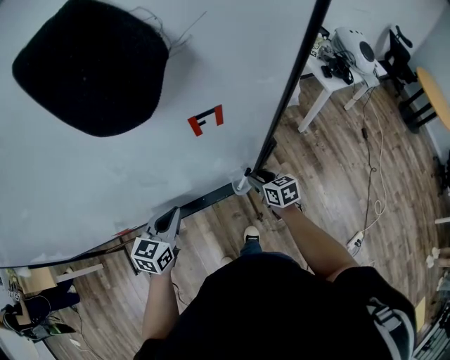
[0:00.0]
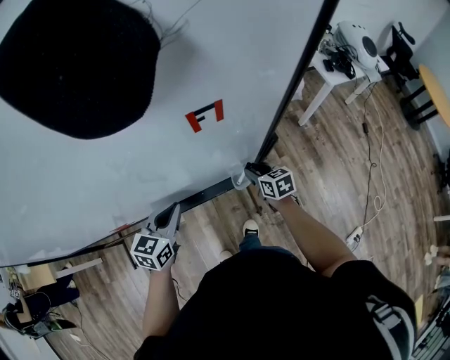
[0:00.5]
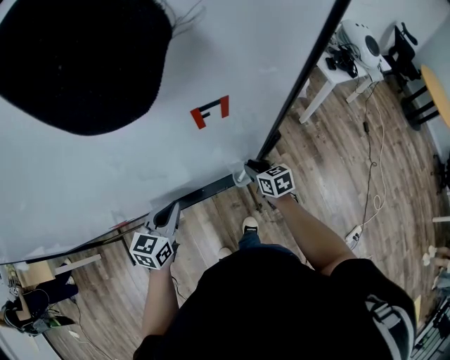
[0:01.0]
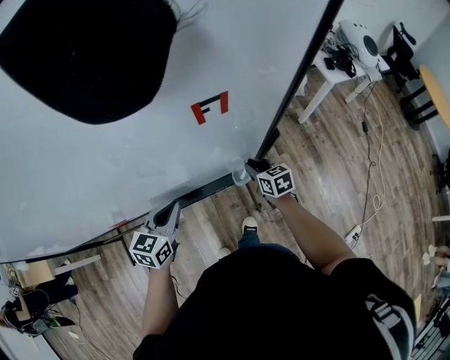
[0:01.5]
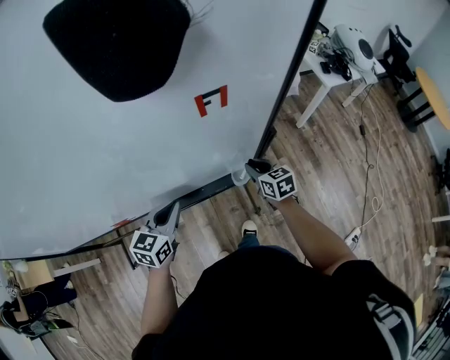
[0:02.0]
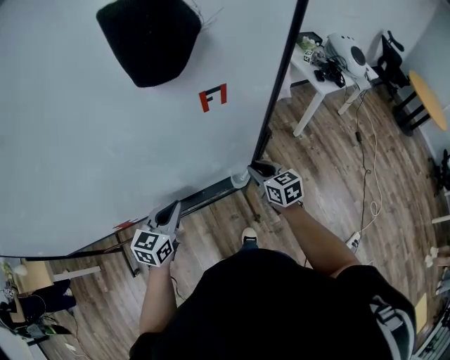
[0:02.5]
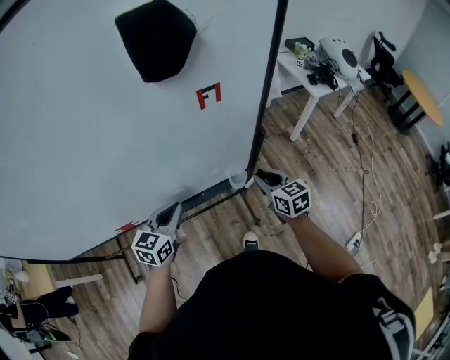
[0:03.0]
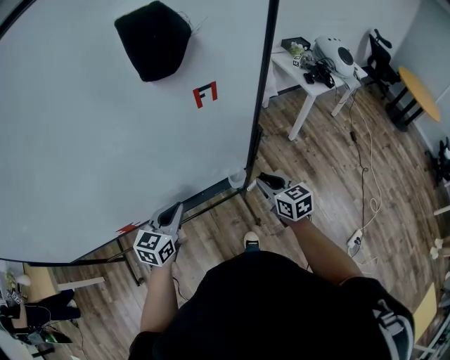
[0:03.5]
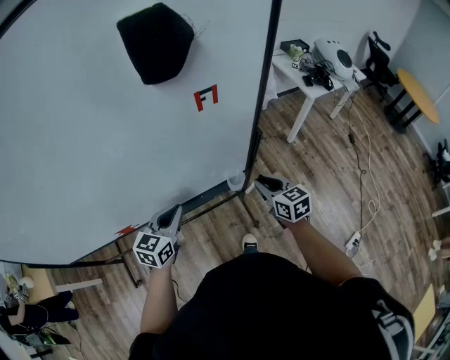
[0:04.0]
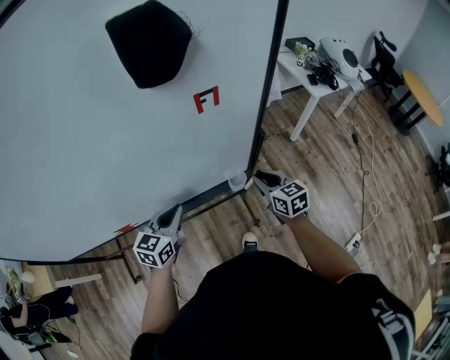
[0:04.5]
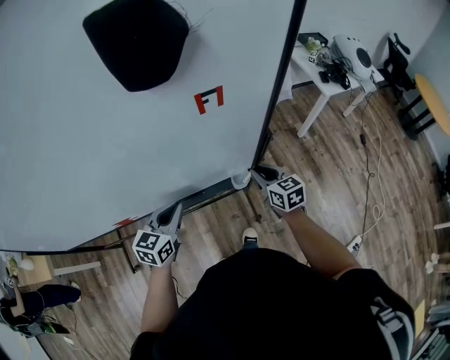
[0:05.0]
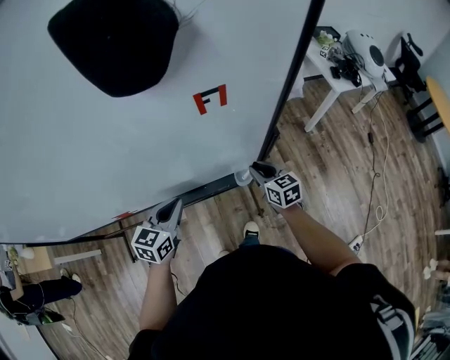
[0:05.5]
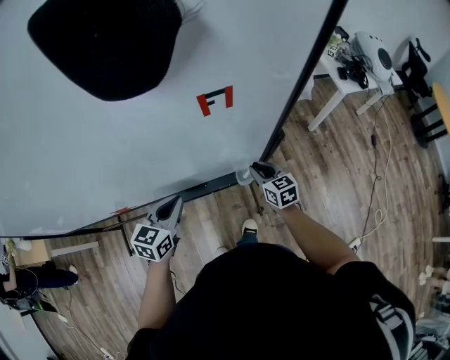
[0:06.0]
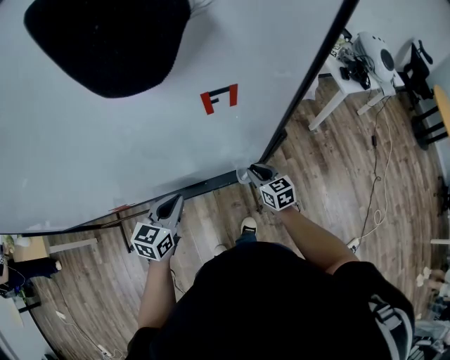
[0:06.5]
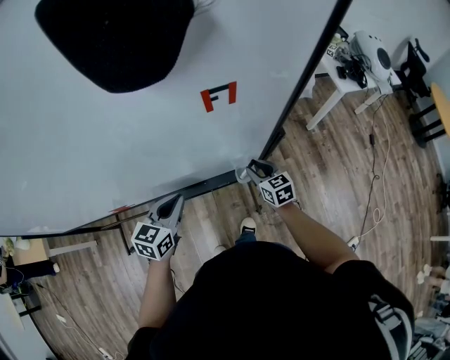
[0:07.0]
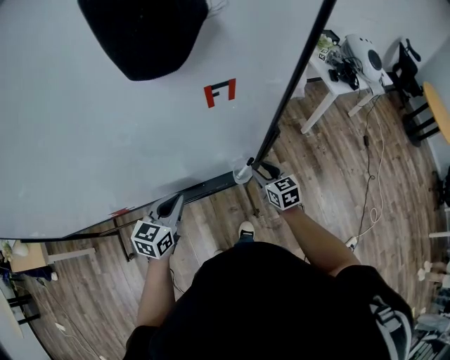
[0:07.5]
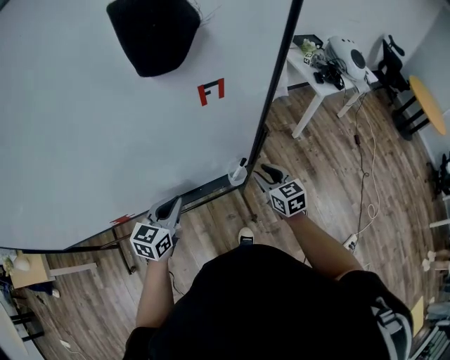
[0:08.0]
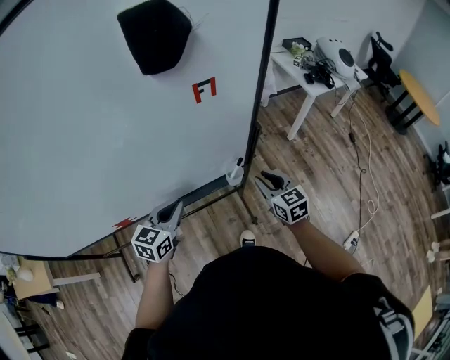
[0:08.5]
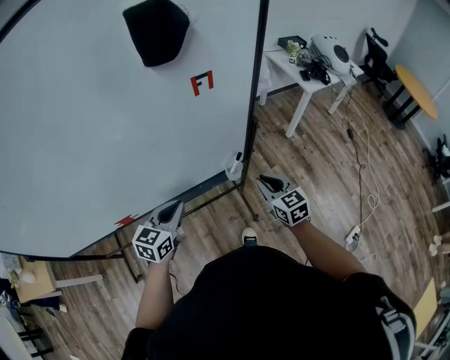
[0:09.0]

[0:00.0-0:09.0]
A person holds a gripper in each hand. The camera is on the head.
0:00.0 to 0:02.0: The grippers move only a little.
0:02.0 to 0:04.5: The right gripper goes approximately 10 cm upward and backward.
0:04.5 to 0:07.0: The right gripper shifts roughly 15 cm downward and forward.
0:07.0 to 0:09.0: The left gripper moves backward, about 5 cm. Meanwhile the right gripper travels backward and upward by about 20 cm.

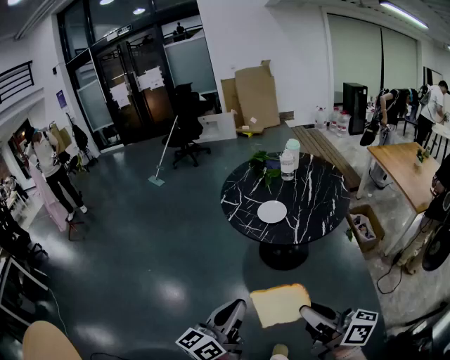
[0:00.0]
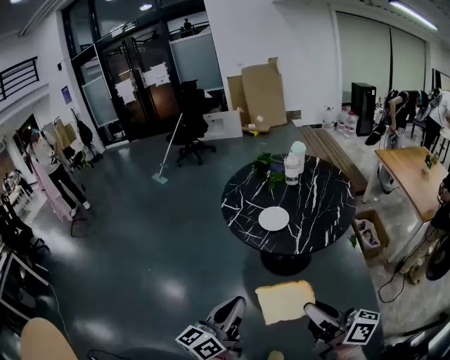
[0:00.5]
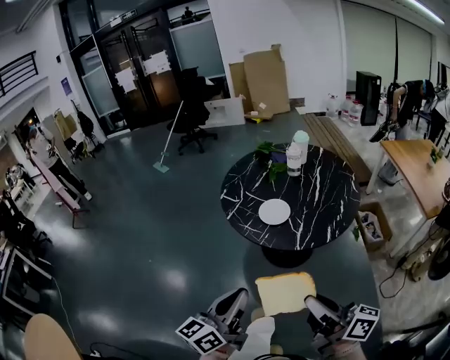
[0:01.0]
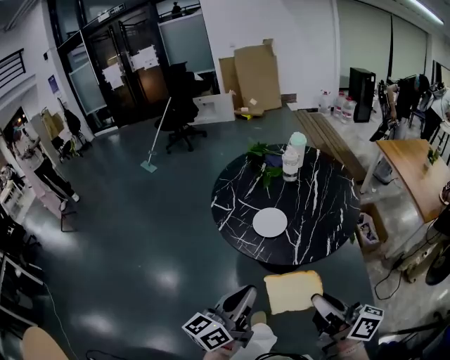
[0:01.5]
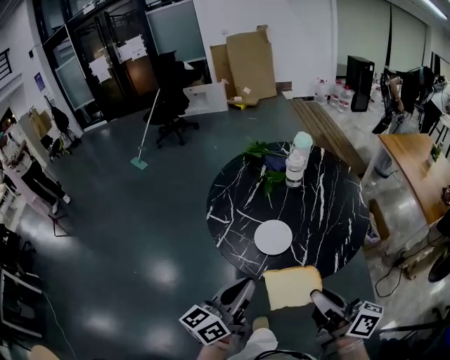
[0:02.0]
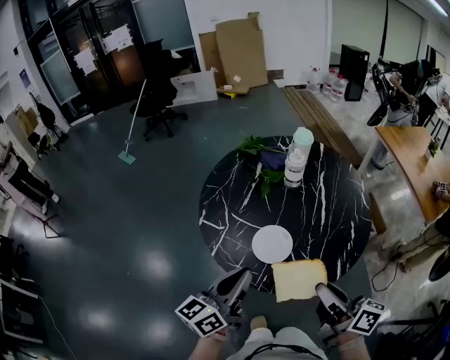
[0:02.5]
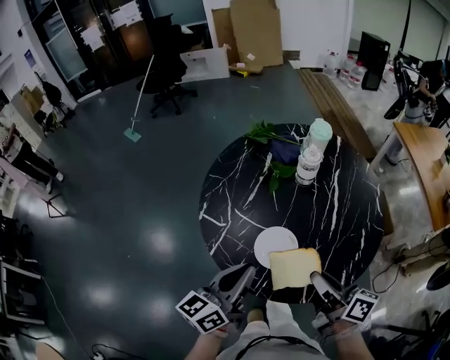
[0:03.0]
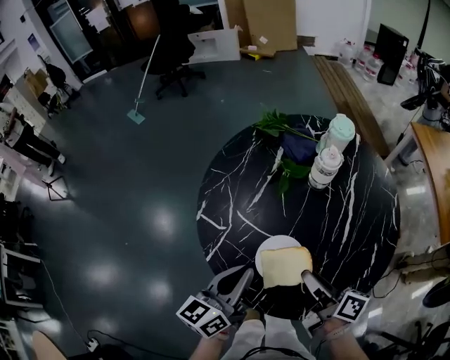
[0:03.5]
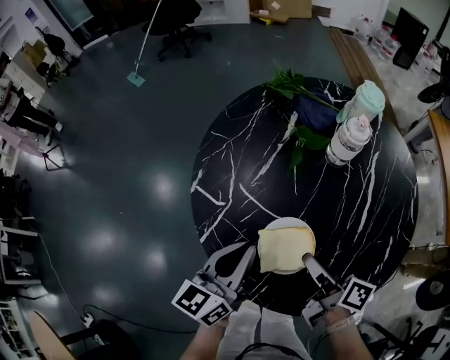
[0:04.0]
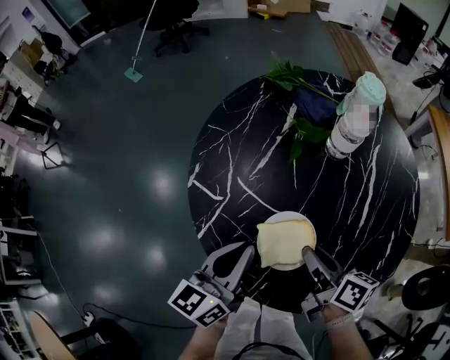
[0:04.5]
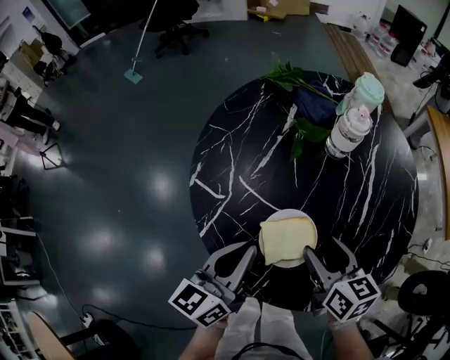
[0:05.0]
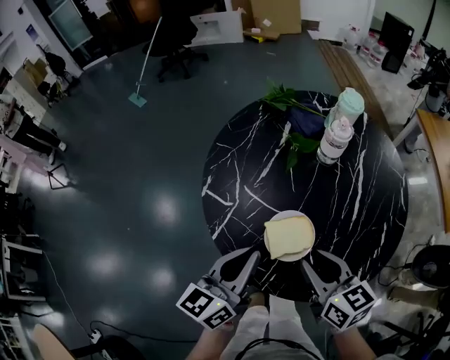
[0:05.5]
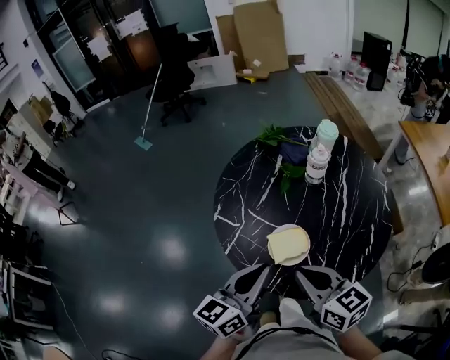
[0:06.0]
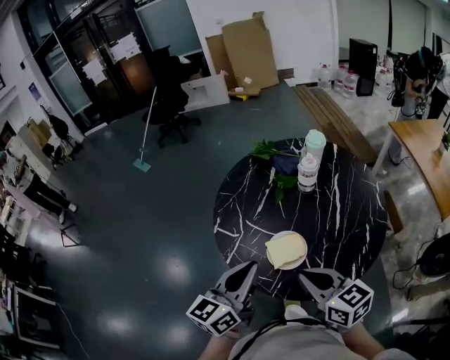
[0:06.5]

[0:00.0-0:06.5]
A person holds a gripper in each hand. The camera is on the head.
0:00.0 to 0:02.0: Both grippers move forward, about 30 cm.
0:02.0 to 0:04.5: The two grippers go some 30 cm forward and downward. The right gripper swivels some 30 degrees.
0:04.5 to 0:06.5: Both grippers move upward and backward, roughly 20 cm. The right gripper changes its angle by some 40 degrees, and opens, then closes once more.

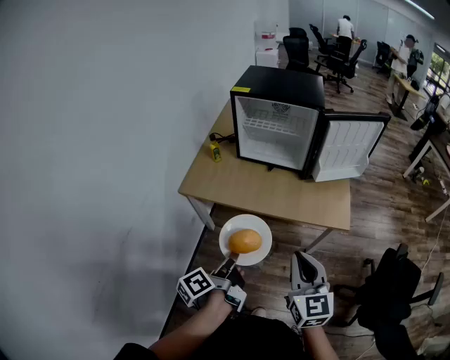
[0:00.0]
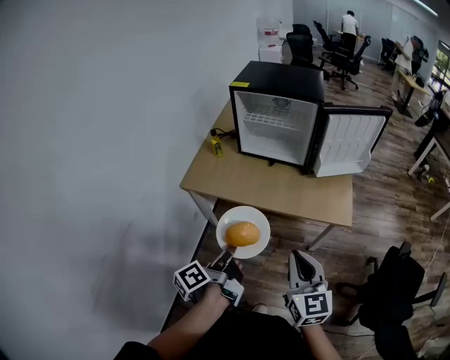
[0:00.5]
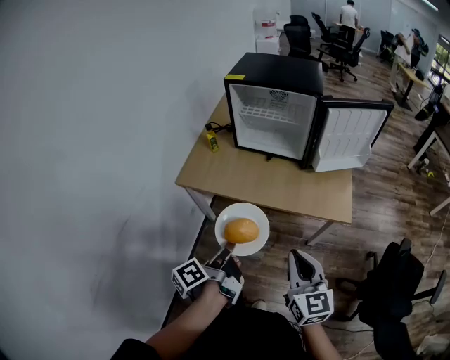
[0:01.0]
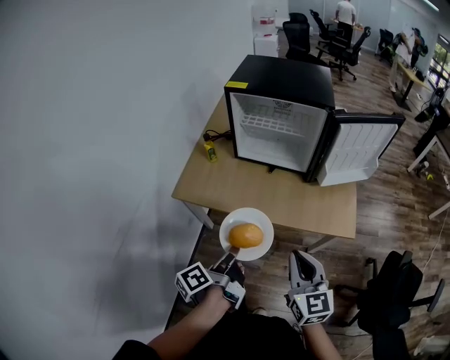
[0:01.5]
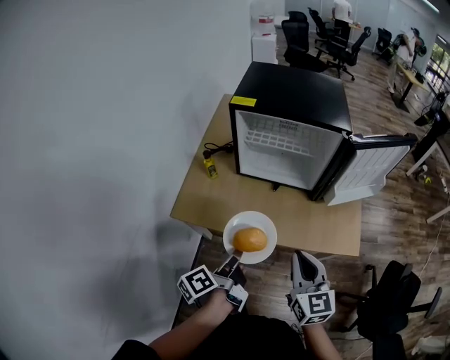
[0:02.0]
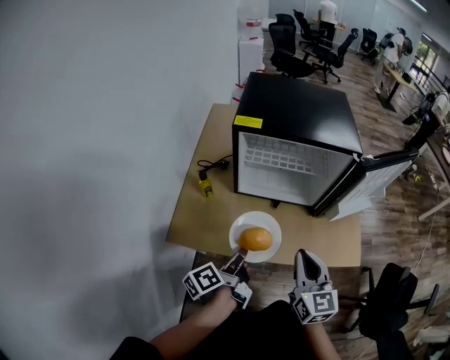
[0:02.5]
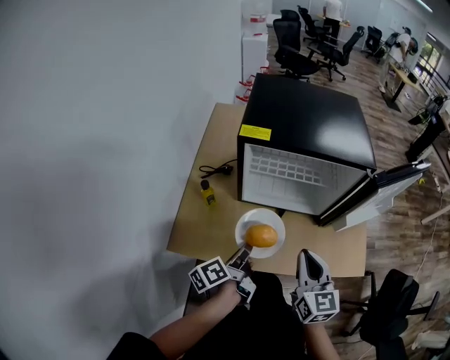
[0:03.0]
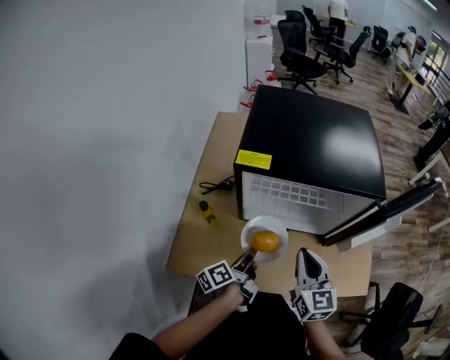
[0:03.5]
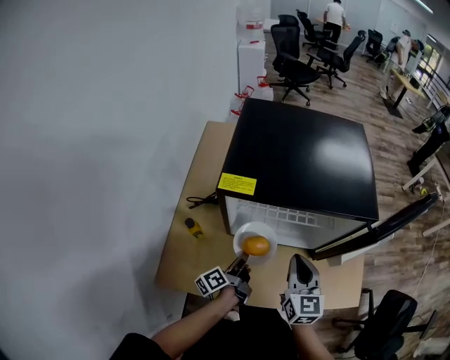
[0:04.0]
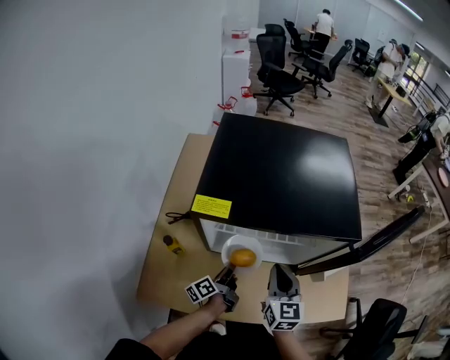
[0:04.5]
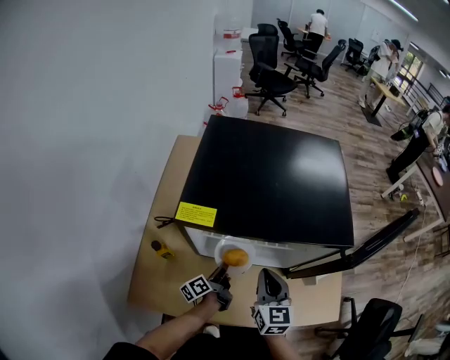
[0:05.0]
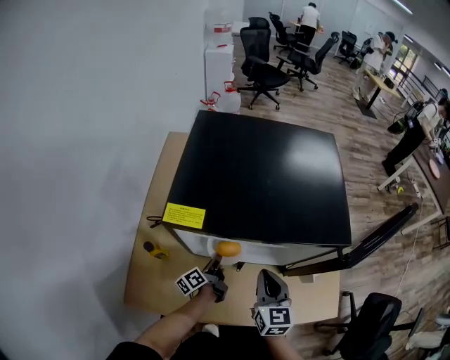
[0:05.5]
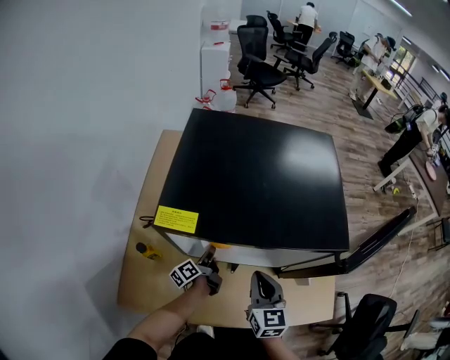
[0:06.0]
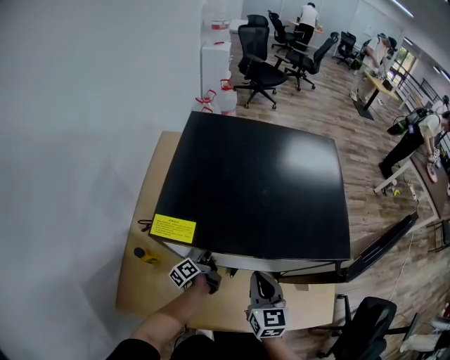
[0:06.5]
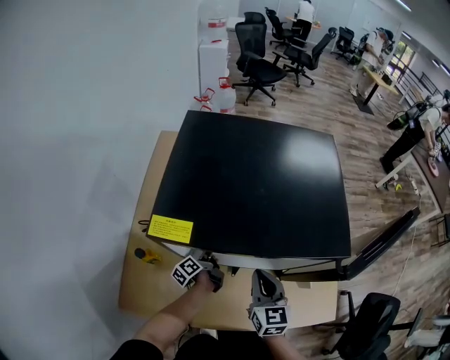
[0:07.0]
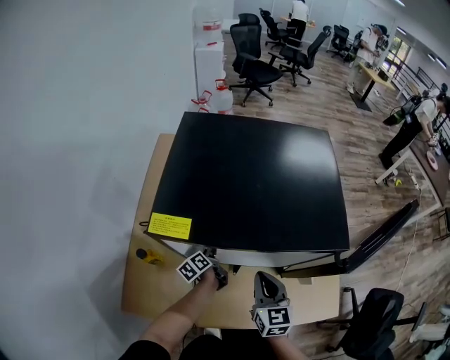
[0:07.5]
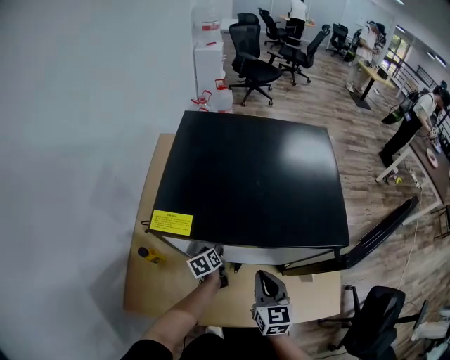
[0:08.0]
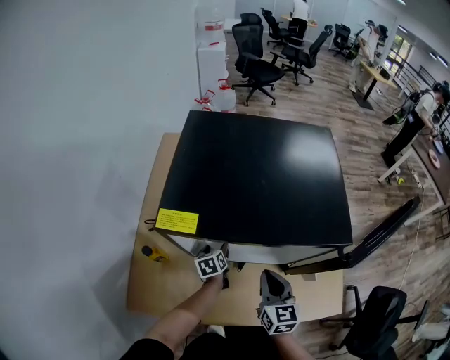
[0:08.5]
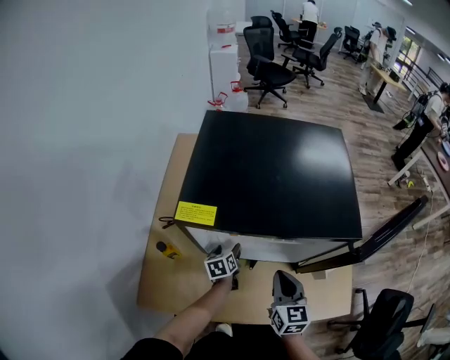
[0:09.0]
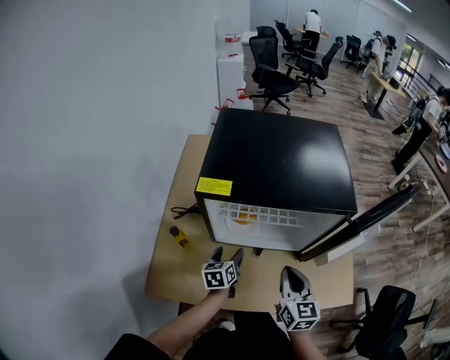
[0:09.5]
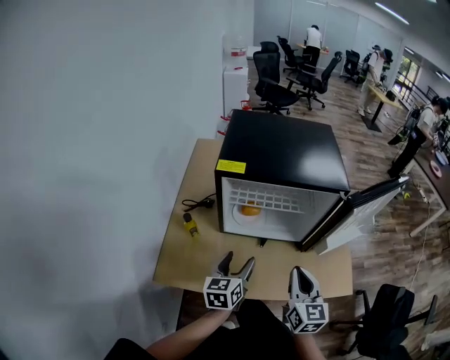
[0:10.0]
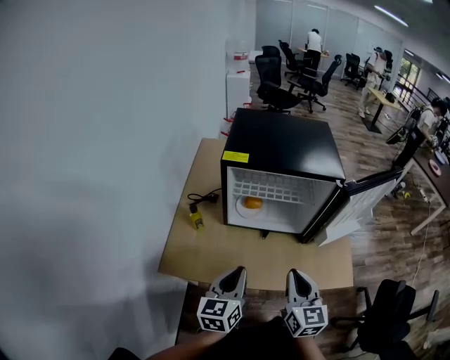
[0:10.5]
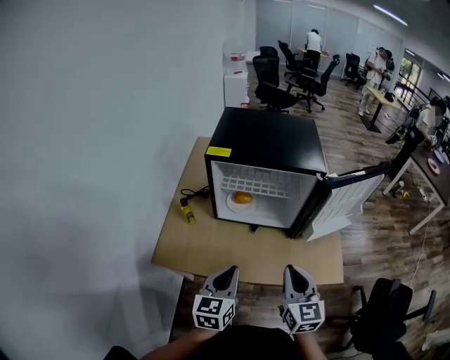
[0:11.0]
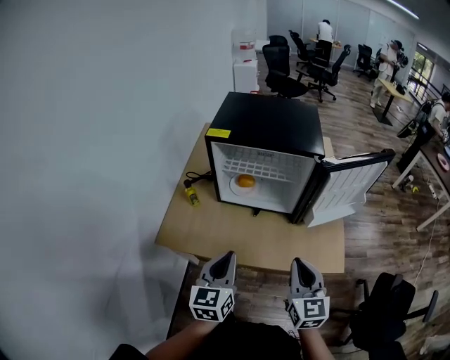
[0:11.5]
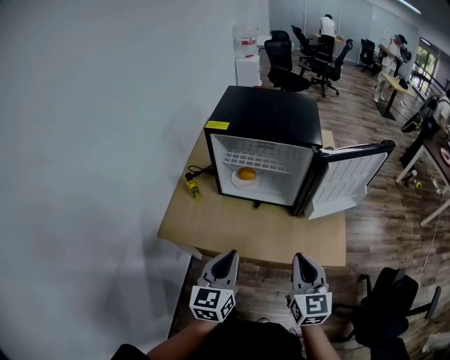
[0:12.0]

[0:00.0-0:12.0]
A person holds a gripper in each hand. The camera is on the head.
0:00.0 to 0:02.0: The two grippers go approximately 20 cm forward.
0:02.0 to 0:04.0: The right gripper travels forward by approximately 25 cm, while the left gripper is displaced forward and downward by approximately 35 cm.
0:04.0 to 0:06.0: The right gripper goes about 5 cm downward. Meanwhile the left gripper moves forward and downward, about 15 cm.
0:06.0 to 0:08.0: The left gripper swivels about 40 degrees, and opens its fingers.
0:08.0 to 0:10.0: The right gripper is displaced backward and upward by about 20 cm; the left gripper shifts about 30 cm upward and backward, turns by roughly 30 degrees, and opens up.
0:10.0 to 0:12.0: The right gripper is displaced backward and to the right by approximately 15 cm. The left gripper goes about 20 cm backward and upward, and closes.
